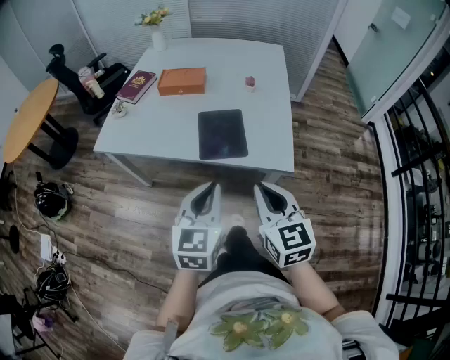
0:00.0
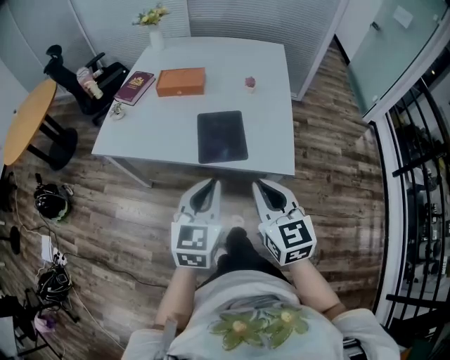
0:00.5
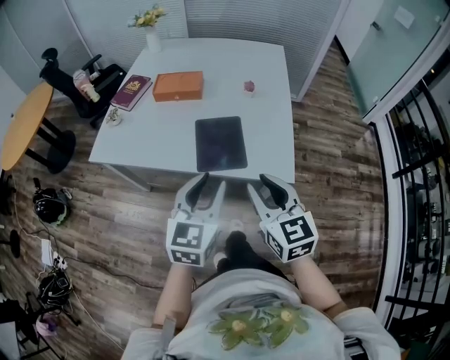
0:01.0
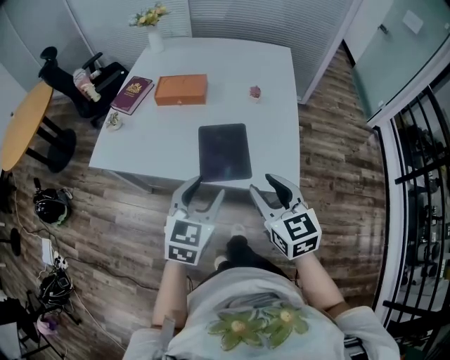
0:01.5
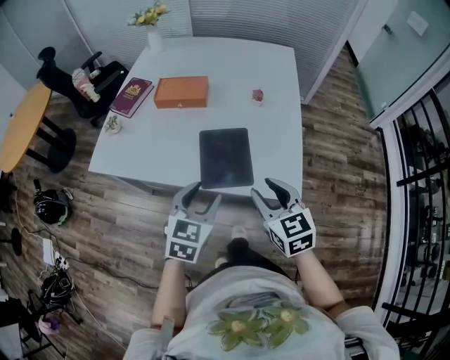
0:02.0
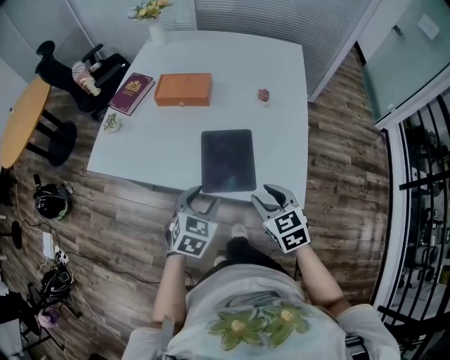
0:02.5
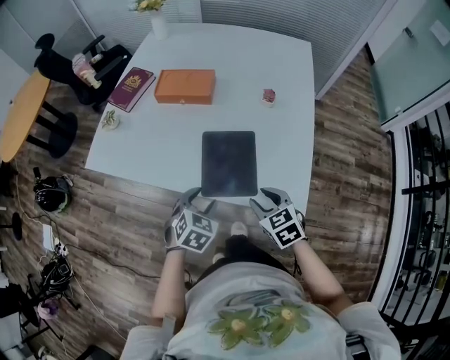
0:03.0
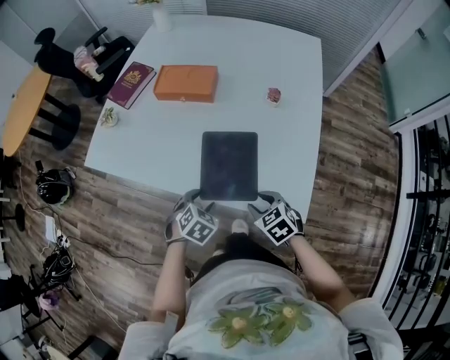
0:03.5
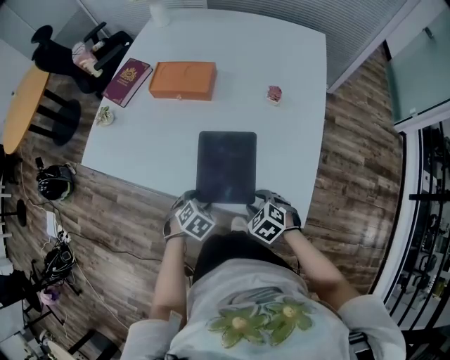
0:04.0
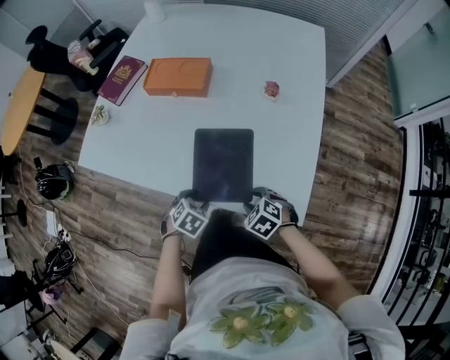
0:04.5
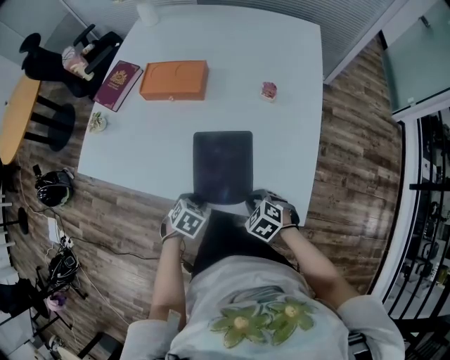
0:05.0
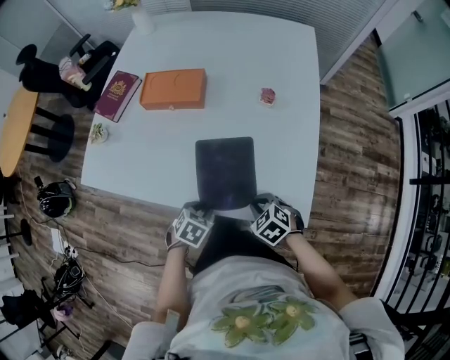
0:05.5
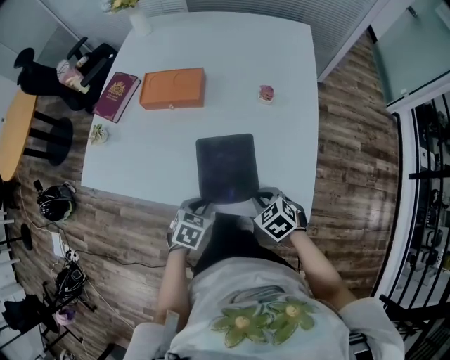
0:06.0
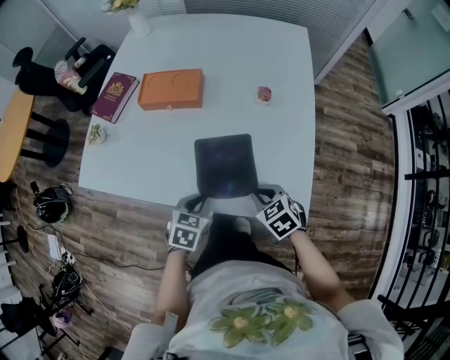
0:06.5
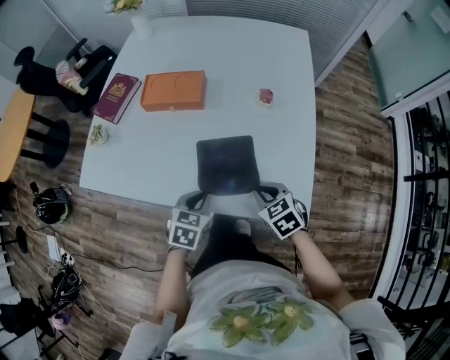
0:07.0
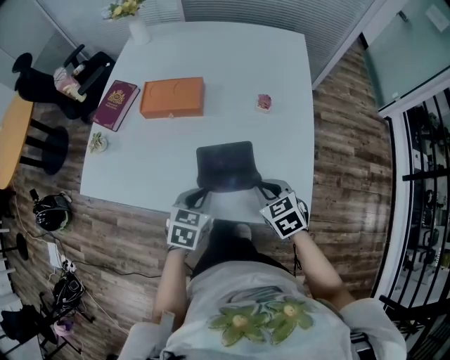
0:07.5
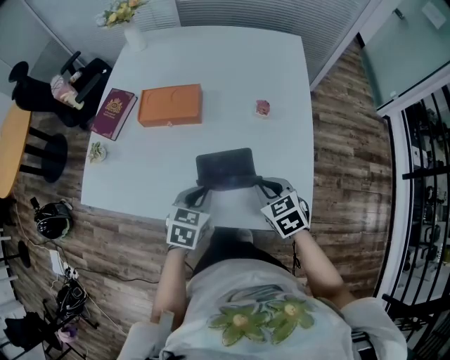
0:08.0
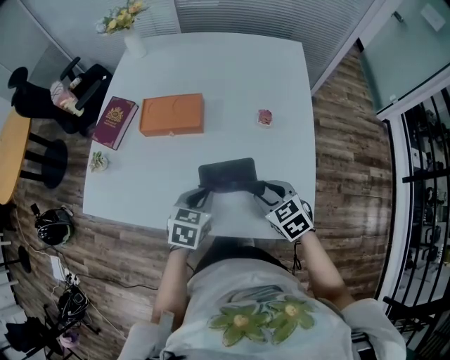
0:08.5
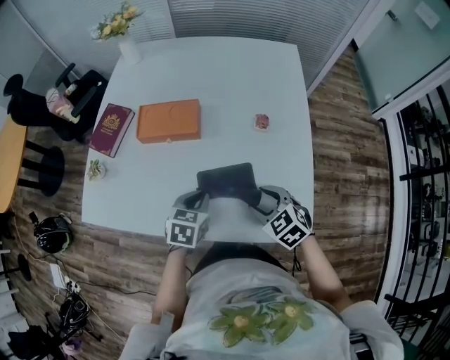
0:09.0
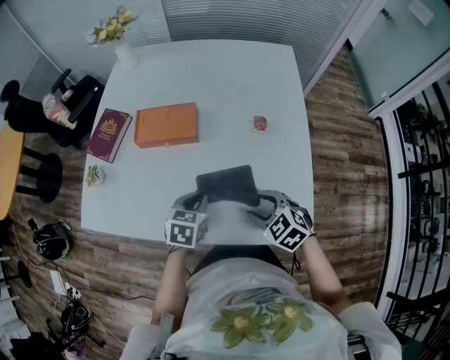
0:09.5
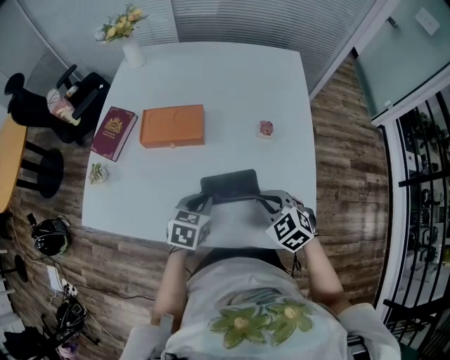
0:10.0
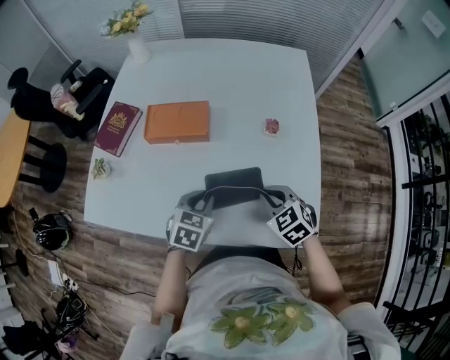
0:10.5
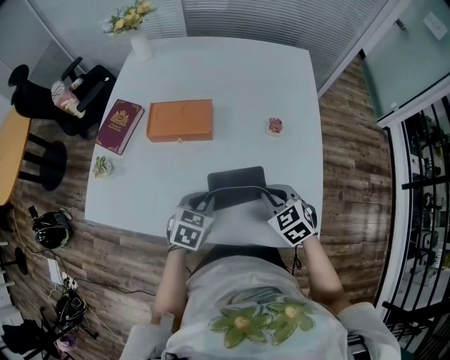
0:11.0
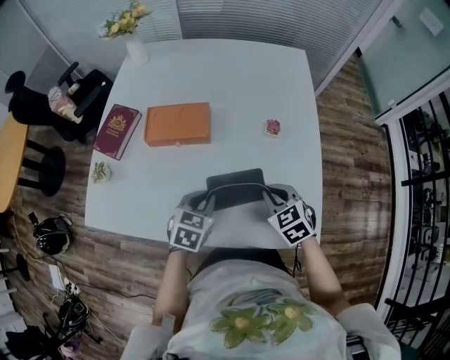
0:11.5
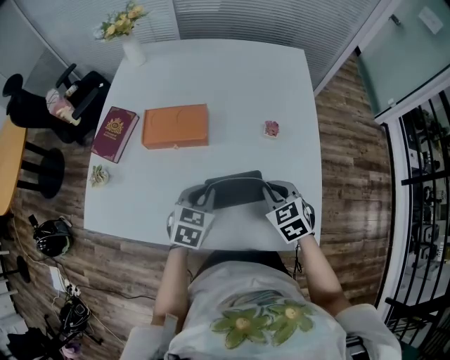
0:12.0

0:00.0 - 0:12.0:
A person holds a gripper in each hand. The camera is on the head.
0:00.0 - 0:02.0: The left gripper moves forward and downward, about 15 cm, and opens up. Meanwhile the right gripper heads forward, covering some 15 cm, and opens up.
0:02.0 - 0:04.0: Both grippers move downward, about 25 cm. The left gripper points its fingers roughly 40 degrees further downward; the right gripper tips its fingers downward by approximately 40 degrees.
0:04.0 - 0:06.0: The right gripper moves about 5 cm, and closes up; the left gripper is displaced upward by about 5 cm, and closes.
0:06.0 - 0:08.0: The grippers both shift forward and upward by approximately 10 cm.
0:08.0 - 0:10.0: The right gripper rotates approximately 20 degrees, and opens and closes again, while the left gripper goes approximately 5 cm forward.
0:10.0 - 0:12.0: The right gripper changes place by approximately 5 cm.

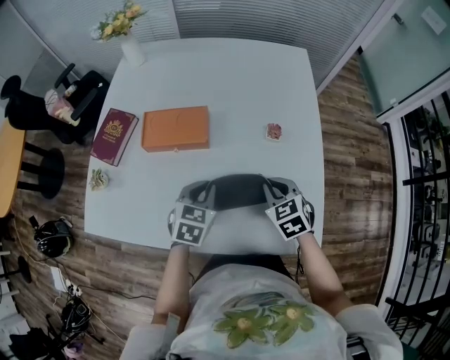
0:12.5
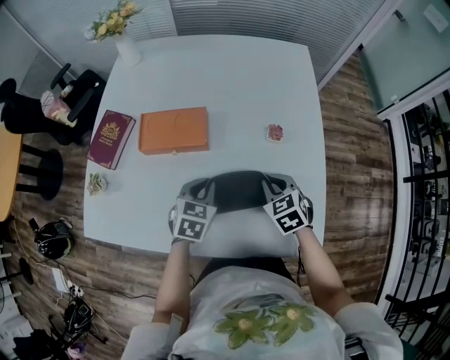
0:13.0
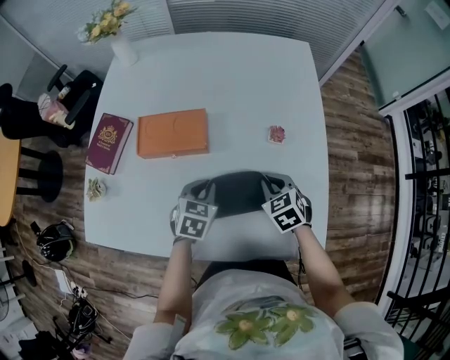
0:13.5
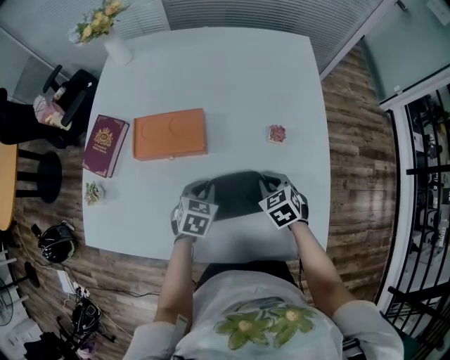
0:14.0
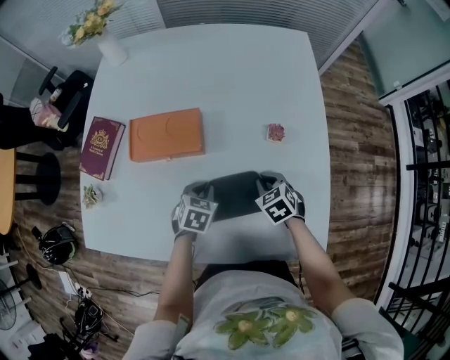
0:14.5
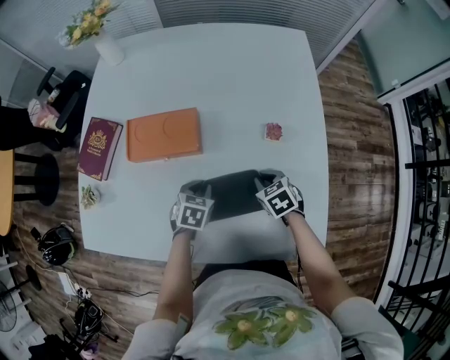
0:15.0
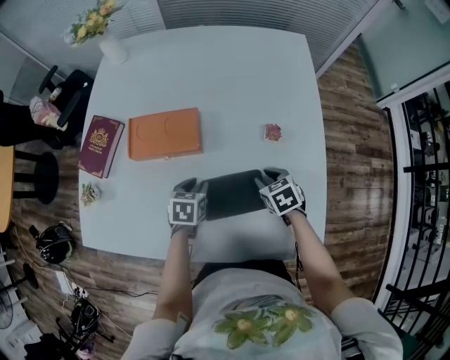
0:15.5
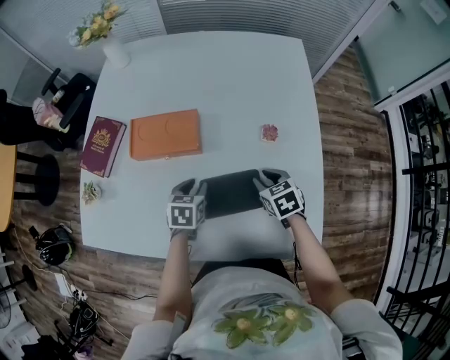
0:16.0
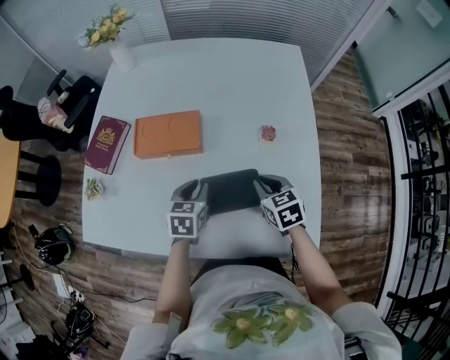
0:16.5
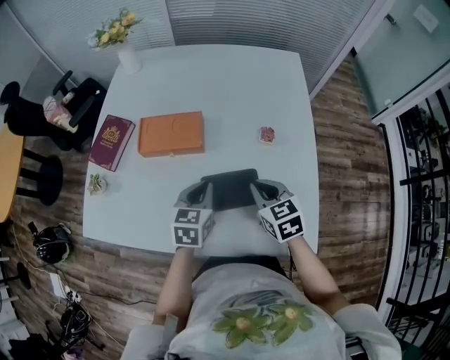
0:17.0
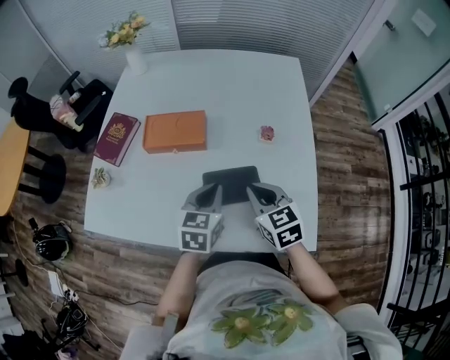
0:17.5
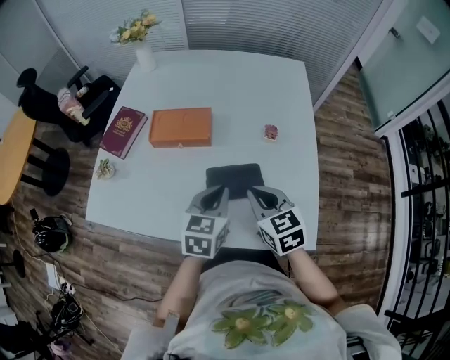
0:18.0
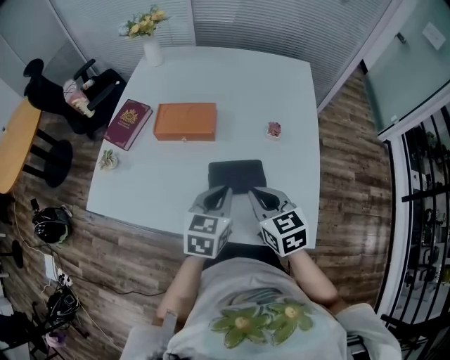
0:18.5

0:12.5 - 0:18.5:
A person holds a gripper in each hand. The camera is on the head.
0:12.5 - 0:14.5: The left gripper is displaced downward by approximately 10 cm, while the right gripper heads downward and forward, covering some 10 cm.
0:14.5 - 0:16.5: Both grippers move upward, about 10 cm. The left gripper turns by about 20 degrees.
0:16.5 - 0:18.5: The right gripper goes about 15 cm backward, upward and to the left. Meanwhile the left gripper moves upward, backward and to the right, approximately 15 cm, and closes up.

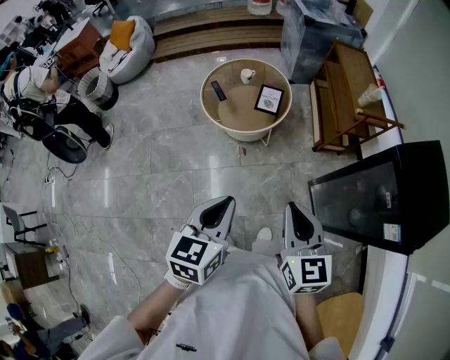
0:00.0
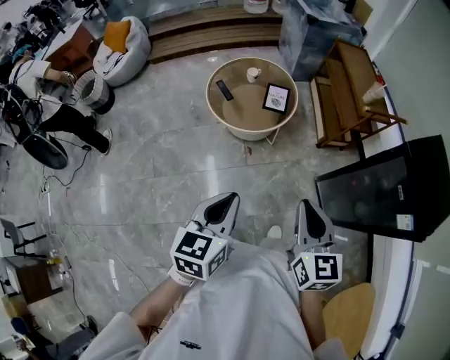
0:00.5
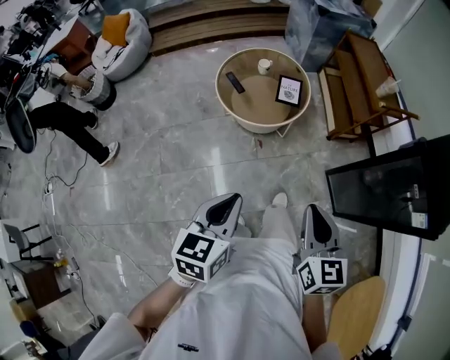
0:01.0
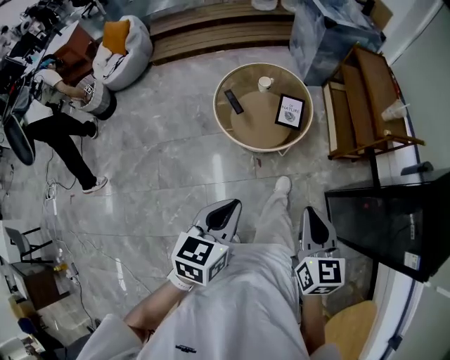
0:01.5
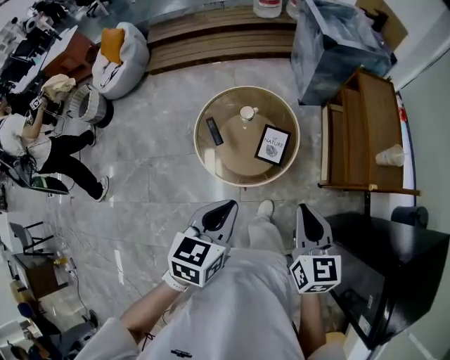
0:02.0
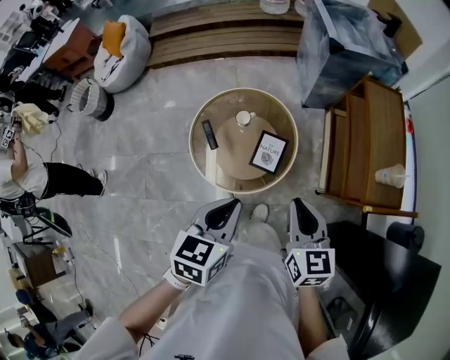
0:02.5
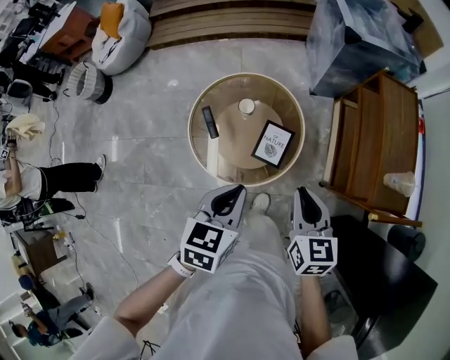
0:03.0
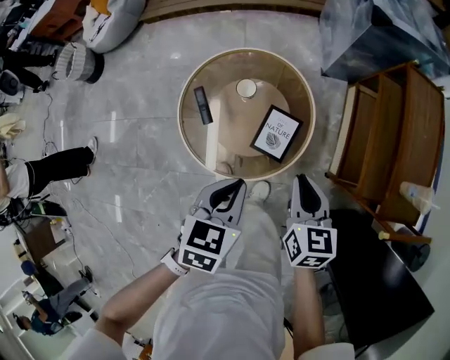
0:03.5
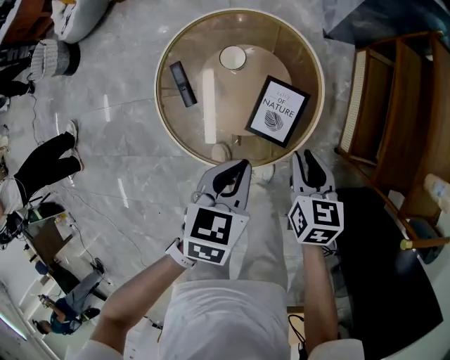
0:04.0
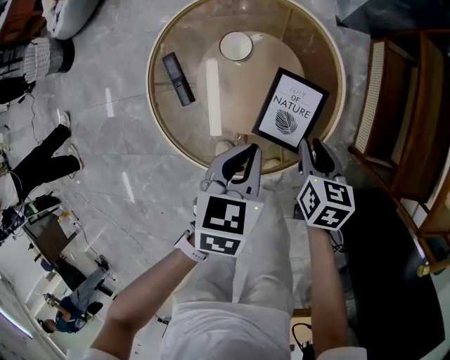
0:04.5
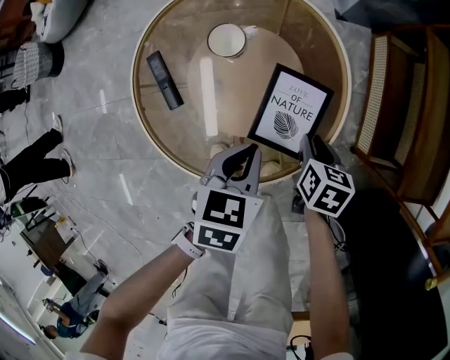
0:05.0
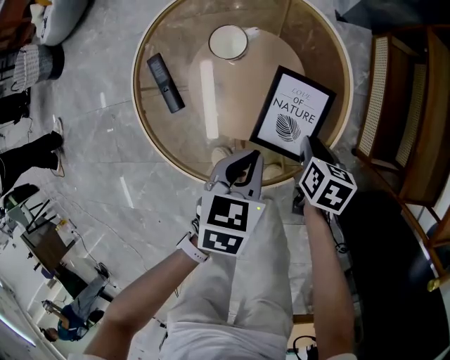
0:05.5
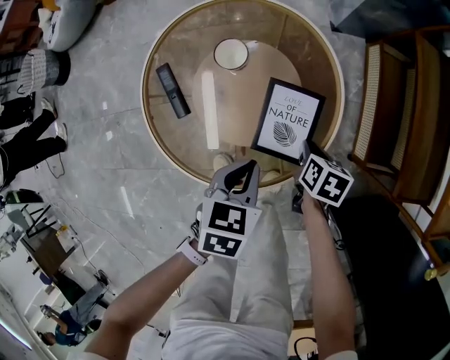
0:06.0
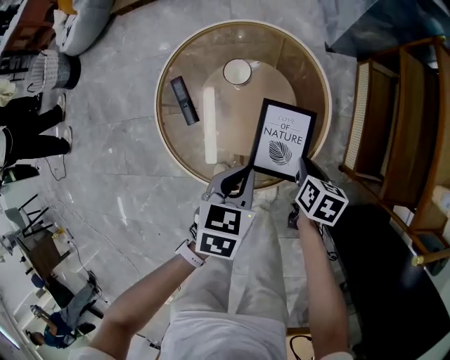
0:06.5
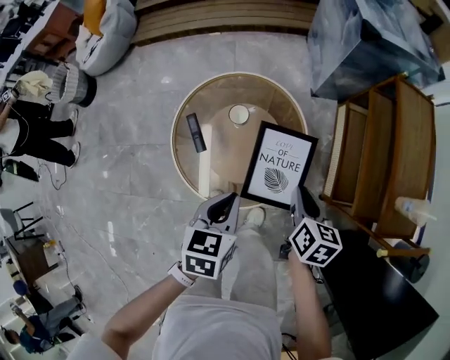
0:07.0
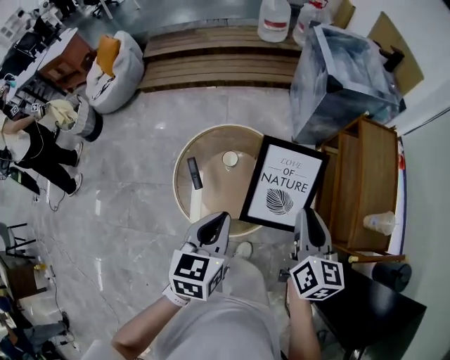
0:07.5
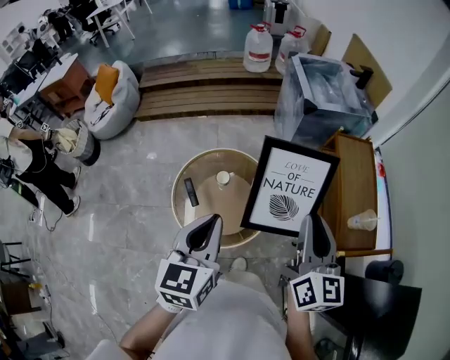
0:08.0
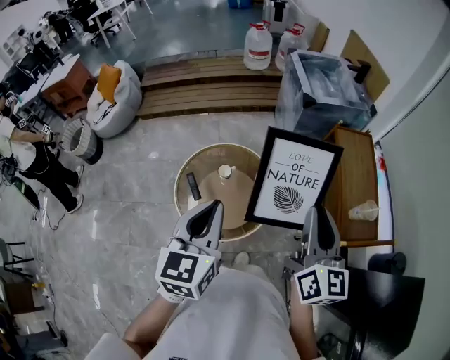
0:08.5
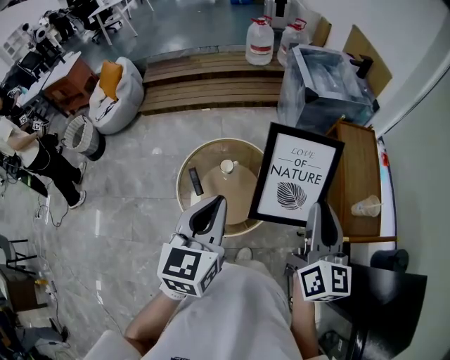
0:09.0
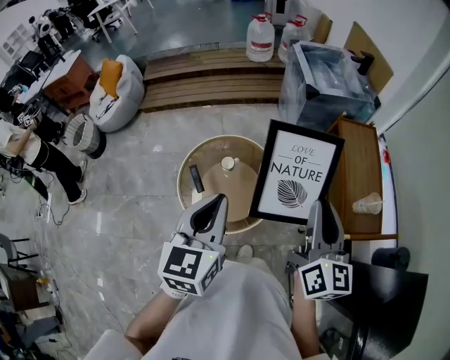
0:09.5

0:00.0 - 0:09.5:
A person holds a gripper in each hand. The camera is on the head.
0:00.0 - 0:02.0: The grippers both shift forward by roughly 40 cm.
0:02.0 - 0:04.0: Both grippers move downward and forward, roughly 40 cm. The right gripper turns by about 20 degrees.
0:04.0 - 0:05.5: The grippers both shift downward by approximately 20 cm. The right gripper rotates approximately 20 degrees.
0:05.5 - 0:07.5: The grippers both shift upward by some 50 cm. The left gripper changes its angle by some 30 degrees. The right gripper points its fingers roughly 40 degrees further upward.
0:07.5 - 0:09.5: The grippers both shift upward by about 15 cm.
